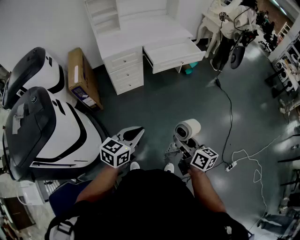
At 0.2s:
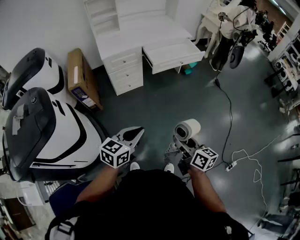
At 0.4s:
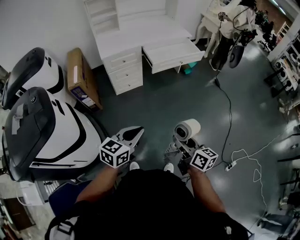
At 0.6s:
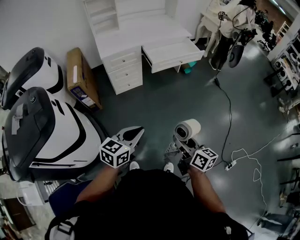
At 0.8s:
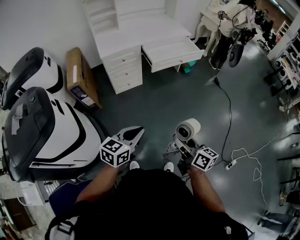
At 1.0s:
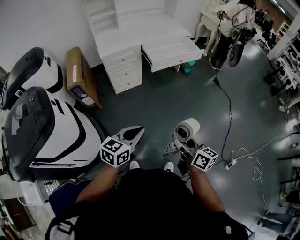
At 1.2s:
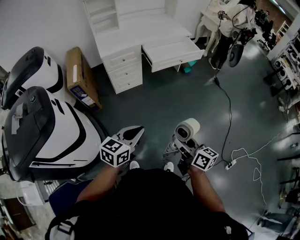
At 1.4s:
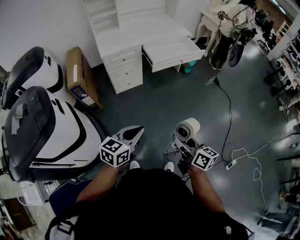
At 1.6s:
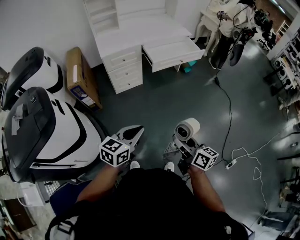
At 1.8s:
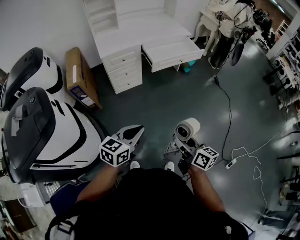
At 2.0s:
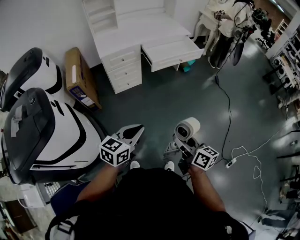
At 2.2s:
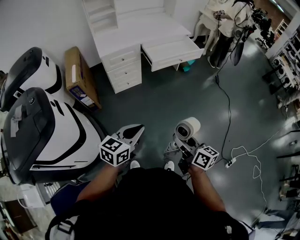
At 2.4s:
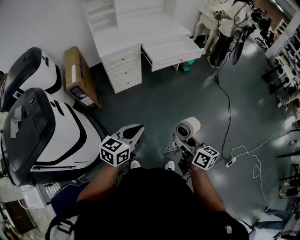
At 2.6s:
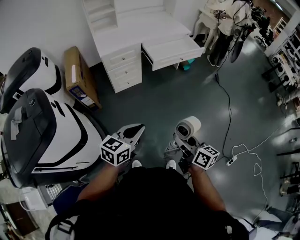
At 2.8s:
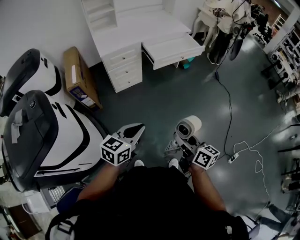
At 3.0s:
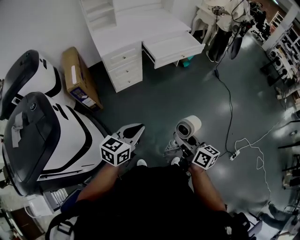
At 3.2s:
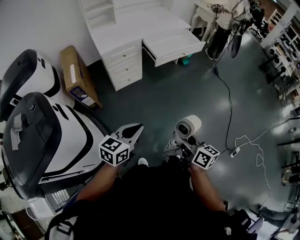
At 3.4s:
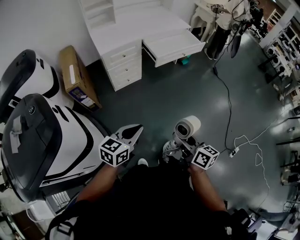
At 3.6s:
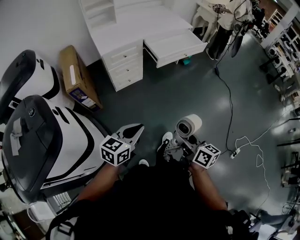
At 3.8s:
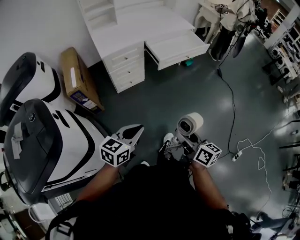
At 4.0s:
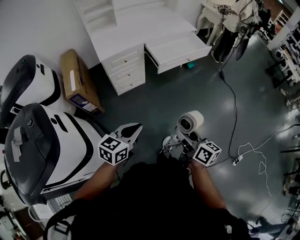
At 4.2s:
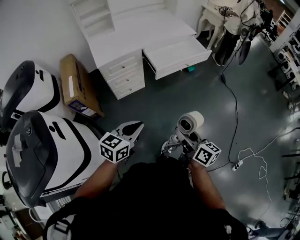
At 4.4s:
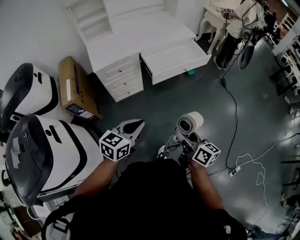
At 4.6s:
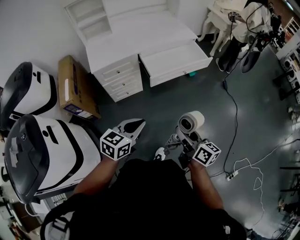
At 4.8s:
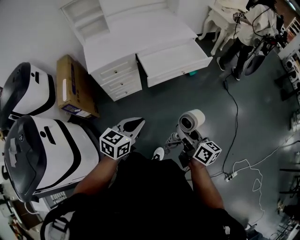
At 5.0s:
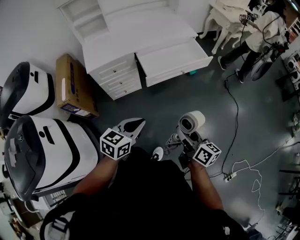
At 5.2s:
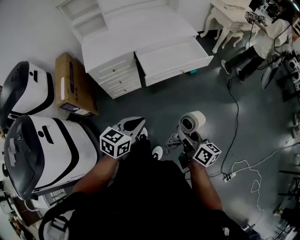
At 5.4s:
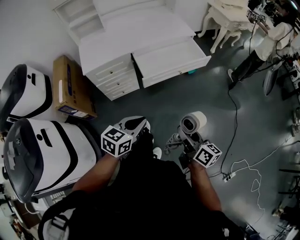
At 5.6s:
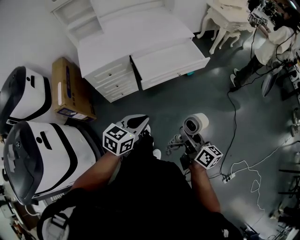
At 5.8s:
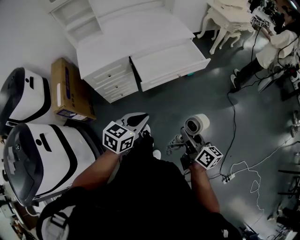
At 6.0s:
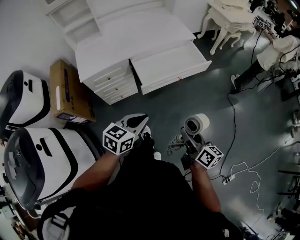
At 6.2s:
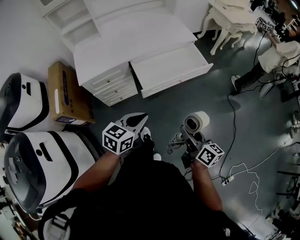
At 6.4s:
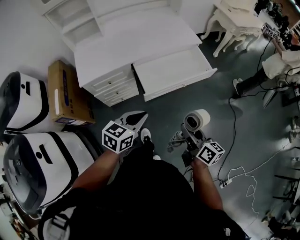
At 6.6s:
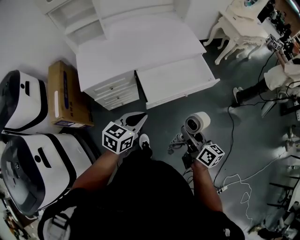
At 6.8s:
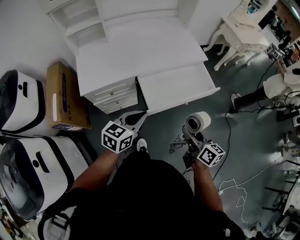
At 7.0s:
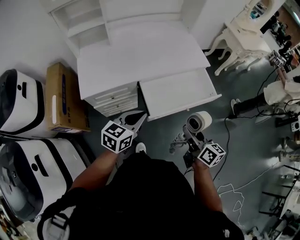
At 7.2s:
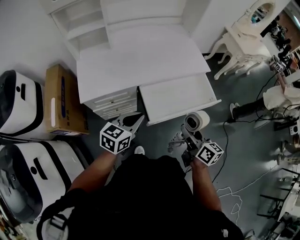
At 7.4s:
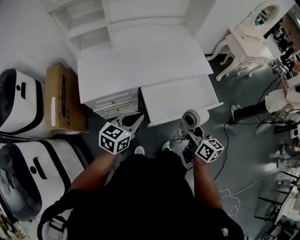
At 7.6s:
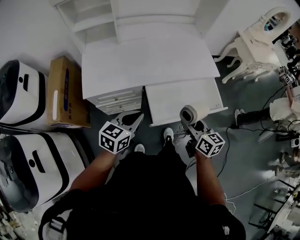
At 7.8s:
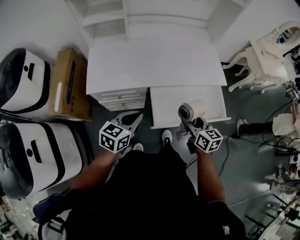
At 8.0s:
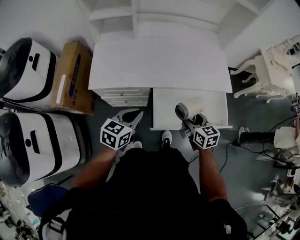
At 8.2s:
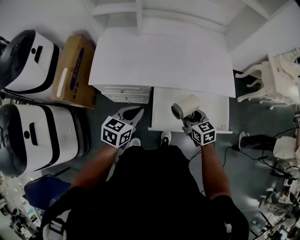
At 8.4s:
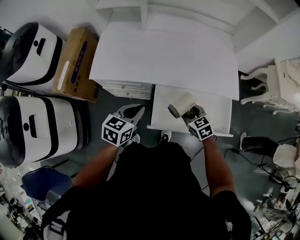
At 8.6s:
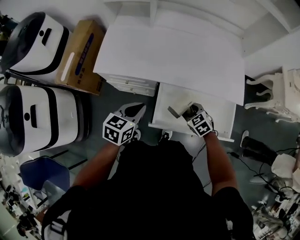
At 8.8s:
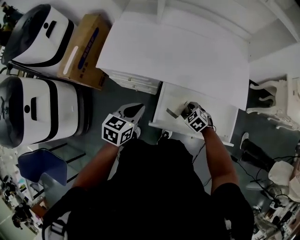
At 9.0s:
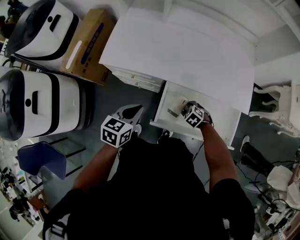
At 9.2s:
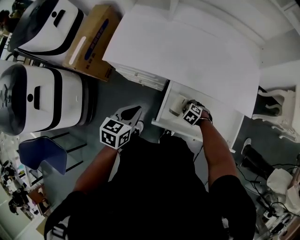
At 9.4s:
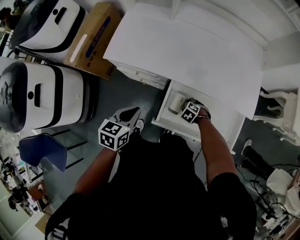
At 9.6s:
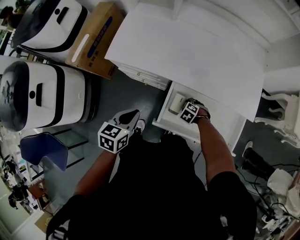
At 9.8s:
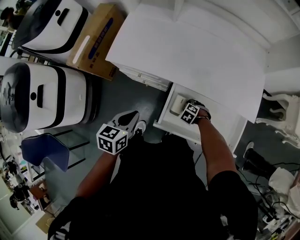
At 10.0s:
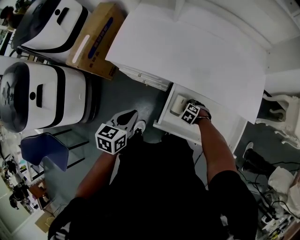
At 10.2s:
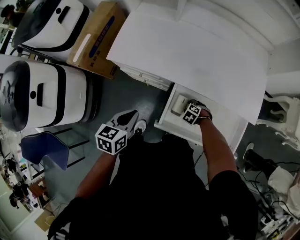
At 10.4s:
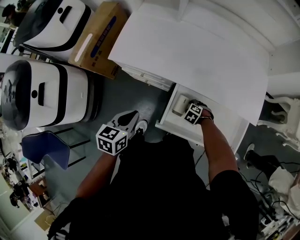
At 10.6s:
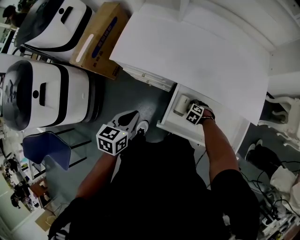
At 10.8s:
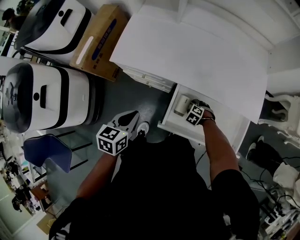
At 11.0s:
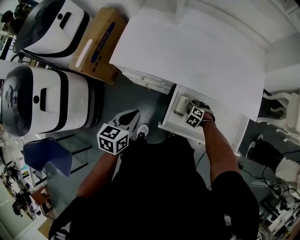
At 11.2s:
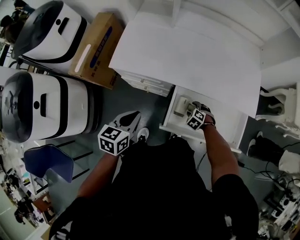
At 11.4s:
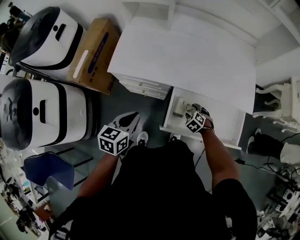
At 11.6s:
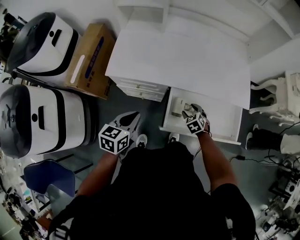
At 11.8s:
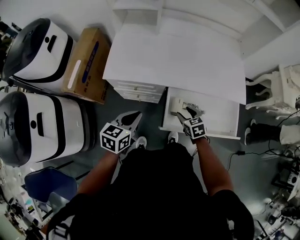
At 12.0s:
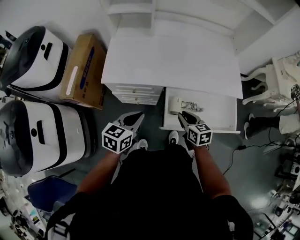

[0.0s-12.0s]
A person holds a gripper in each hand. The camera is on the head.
0.0s to 1.6s: The grippers stay close to where they were, moving slightly.
1.6s to 3.0s: Both grippers travel together to the left, some 5 cm.
3.0s to 4.4s: Both grippers move forward, about 20 cm.
4.4s to 6.0s: Both grippers travel together forward and to the right, approximately 20 cm.
6.0s to 7.6s: The right gripper moves forward, some 30 cm, and turns by some 30 degrees, while the left gripper travels forward and to the left by approximately 30 cm.
7.6s to 9.0s: The right gripper shifts about 30 cm downward, and points its fingers about 50 degrees further downward. The left gripper shifts approximately 10 cm downward, and rotates approximately 30 degrees.
9.0s to 10.4s: The right gripper shifts about 5 cm downward.
10.4s to 12.0s: The left gripper changes its angle by some 30 degrees. Meanwhile the right gripper shifts approximately 25 cm upward, tips its fingers upward by some 40 degrees, and closes up.

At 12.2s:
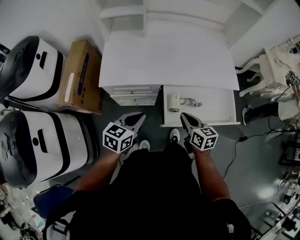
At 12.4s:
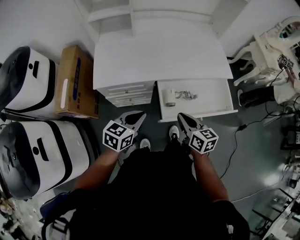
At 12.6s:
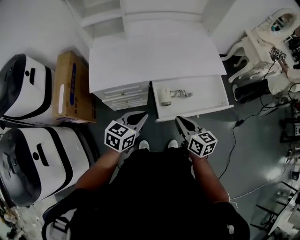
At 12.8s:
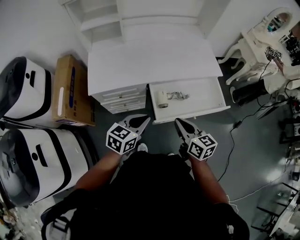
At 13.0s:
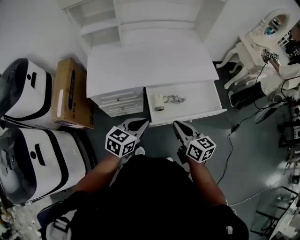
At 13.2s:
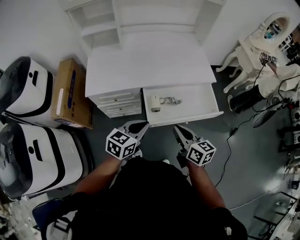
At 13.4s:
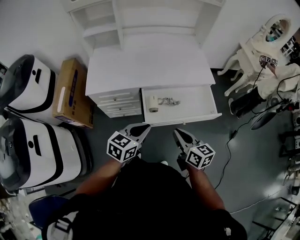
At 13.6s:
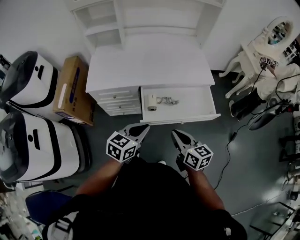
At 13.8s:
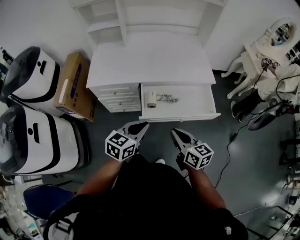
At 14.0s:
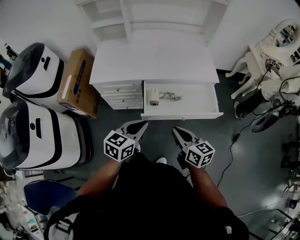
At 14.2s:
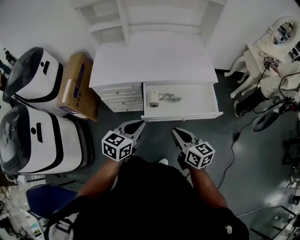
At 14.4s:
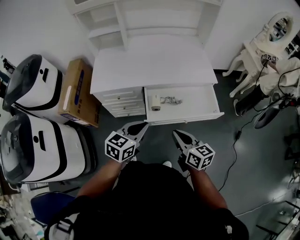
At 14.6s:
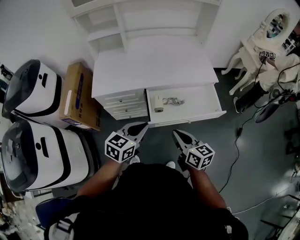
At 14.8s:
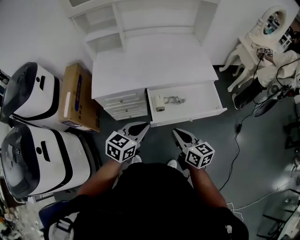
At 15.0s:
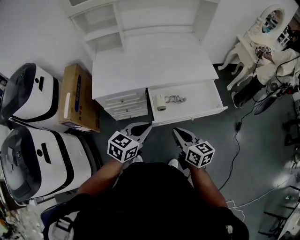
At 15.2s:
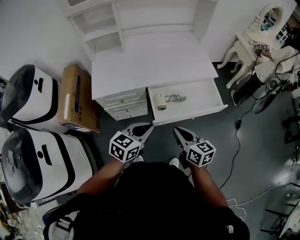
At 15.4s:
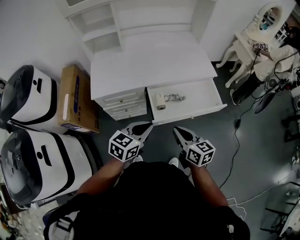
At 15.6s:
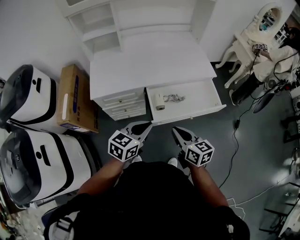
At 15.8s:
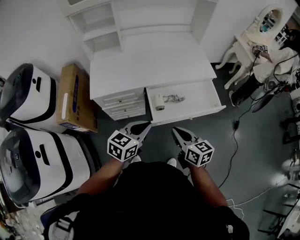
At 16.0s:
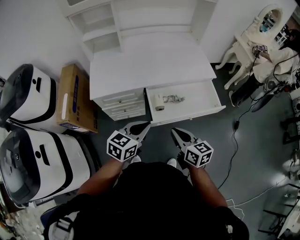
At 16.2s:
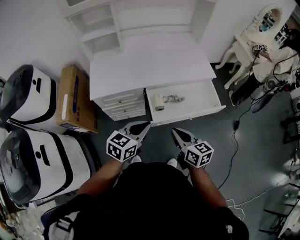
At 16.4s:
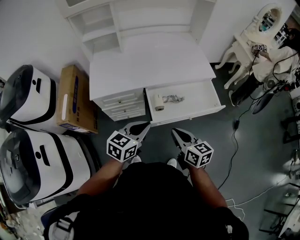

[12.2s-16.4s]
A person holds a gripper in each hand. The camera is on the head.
12.2s to 13.6s: The left gripper shifts about 20 cm to the right and backward. Meanwhile the right gripper is displaced backward, to the right and upward by about 20 cm.
13.6s to 15.0s: Both grippers travel together to the left, approximately 5 cm.
15.0s to 16.4s: The two grippers keep their place.

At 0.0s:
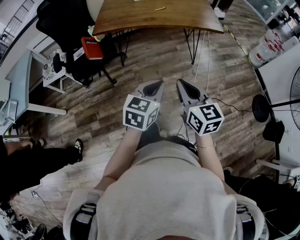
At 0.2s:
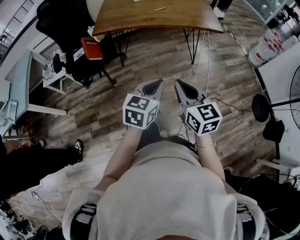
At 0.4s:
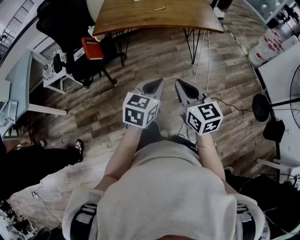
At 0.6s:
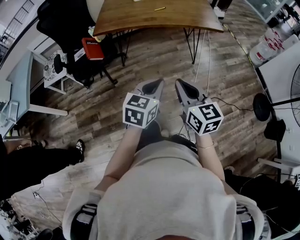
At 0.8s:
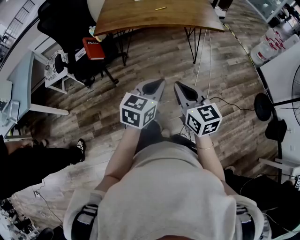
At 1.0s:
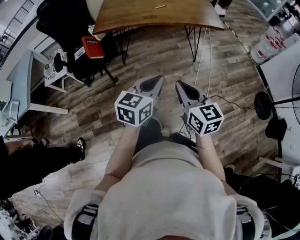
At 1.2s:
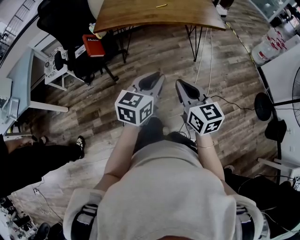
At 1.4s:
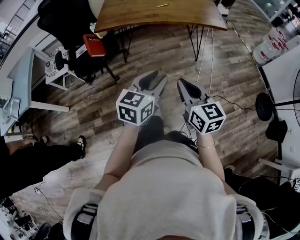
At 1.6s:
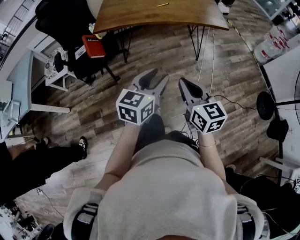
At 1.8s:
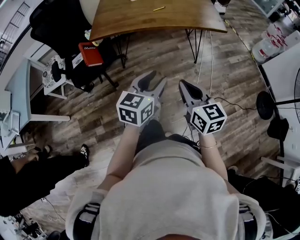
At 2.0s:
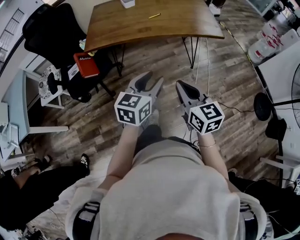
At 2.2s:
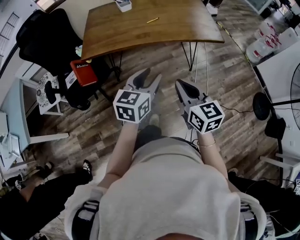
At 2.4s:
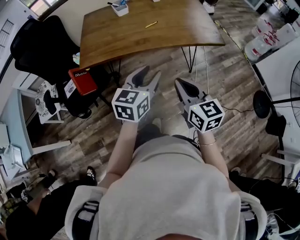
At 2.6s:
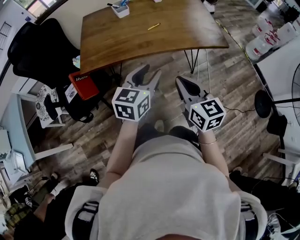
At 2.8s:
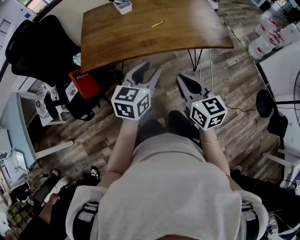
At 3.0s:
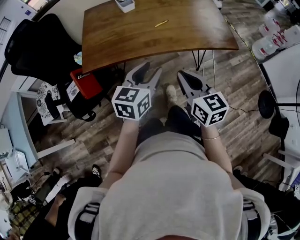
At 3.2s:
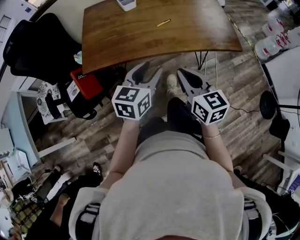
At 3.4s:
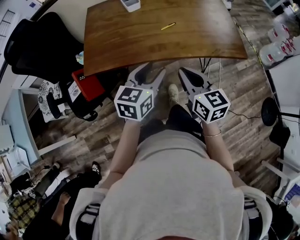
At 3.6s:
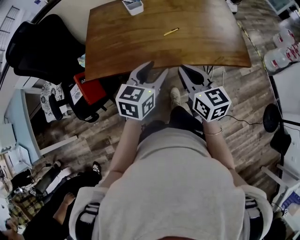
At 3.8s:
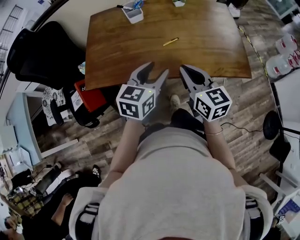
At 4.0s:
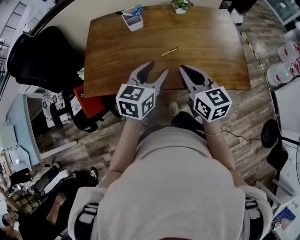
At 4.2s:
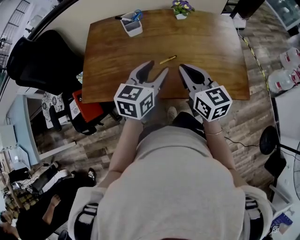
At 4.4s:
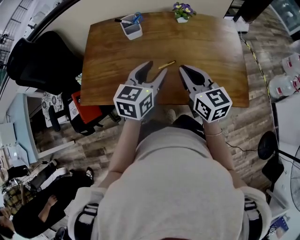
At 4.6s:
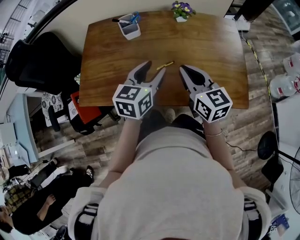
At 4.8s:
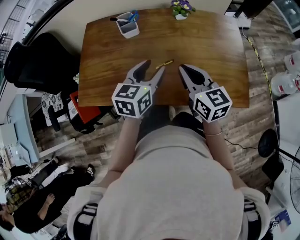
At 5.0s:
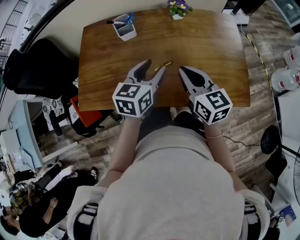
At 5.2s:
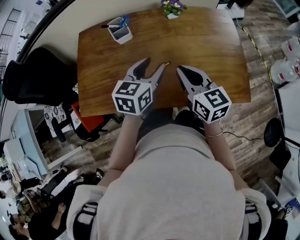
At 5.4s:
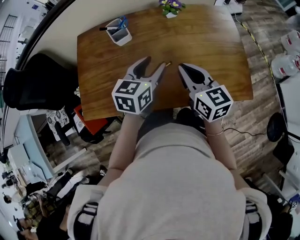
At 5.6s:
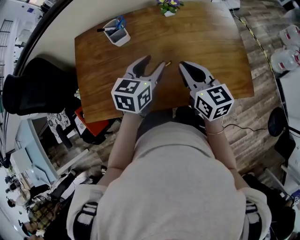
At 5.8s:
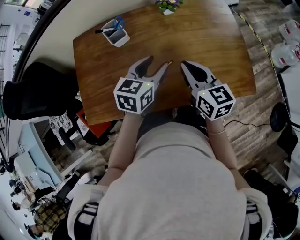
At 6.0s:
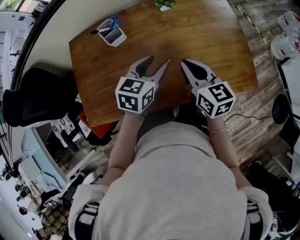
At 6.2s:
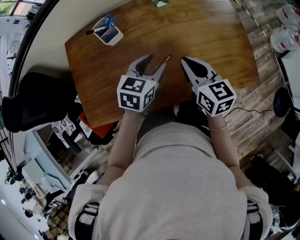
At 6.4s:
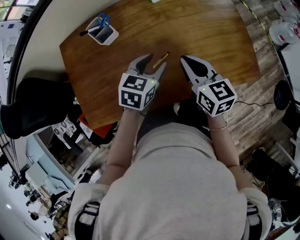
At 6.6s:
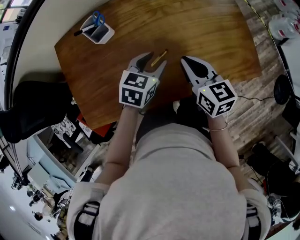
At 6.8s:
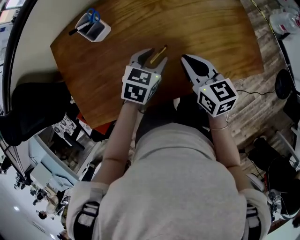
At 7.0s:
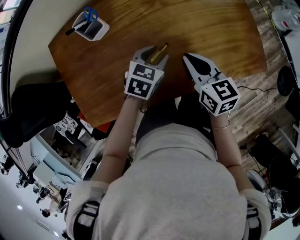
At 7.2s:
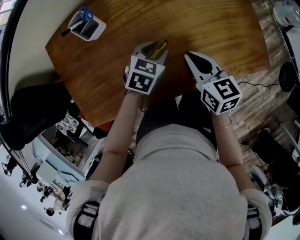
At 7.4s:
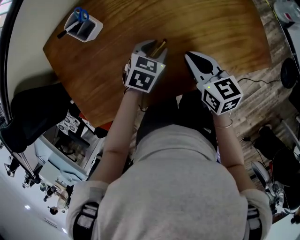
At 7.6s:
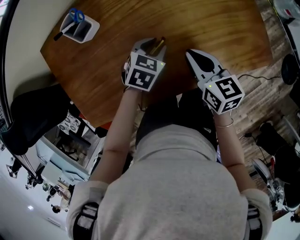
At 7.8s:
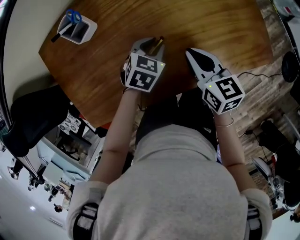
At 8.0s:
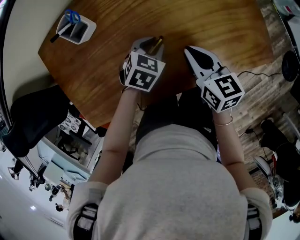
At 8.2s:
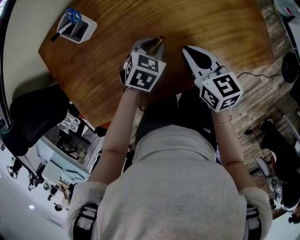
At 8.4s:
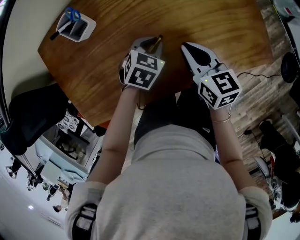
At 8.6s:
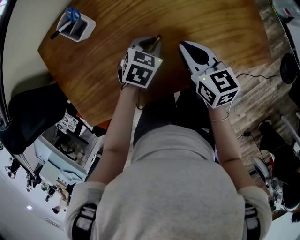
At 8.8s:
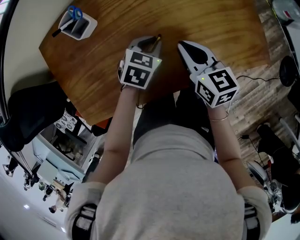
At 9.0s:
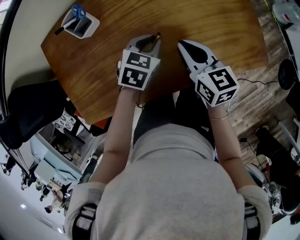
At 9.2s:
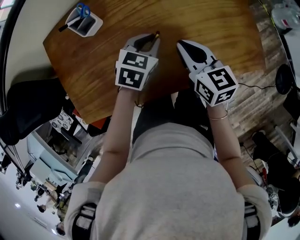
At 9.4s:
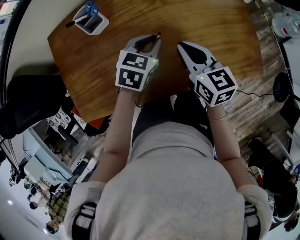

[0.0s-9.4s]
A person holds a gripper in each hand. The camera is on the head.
0.0s to 1.6s: The left gripper opens up.
1.6s to 3.2s: The two grippers go some 35 cm forward.
3.2s to 4.8s: The two grippers go roughly 30 cm forward.
4.8s to 6.2s: The left gripper heads downward and forward, covering about 10 cm, and swivels about 30 degrees. Meanwhile the right gripper shifts by some 5 cm.
6.2s to 7.8s: The left gripper is displaced downward by roughly 15 cm, and swivels some 30 degrees; the right gripper goes about 10 cm downward.
7.8s to 9.4s: The right gripper shifts roughly 5 cm upward, while the left gripper travels upward by approximately 10 cm.
